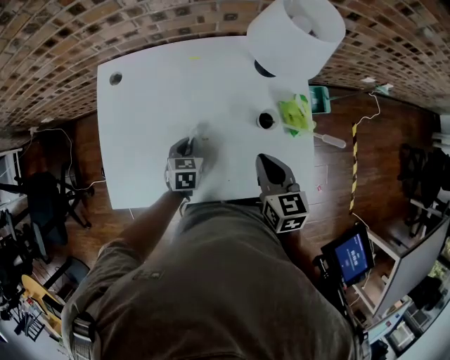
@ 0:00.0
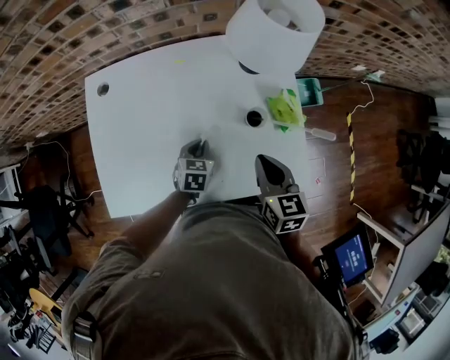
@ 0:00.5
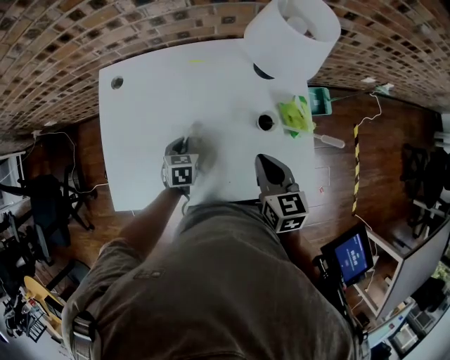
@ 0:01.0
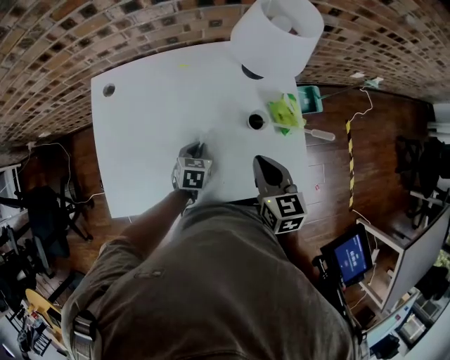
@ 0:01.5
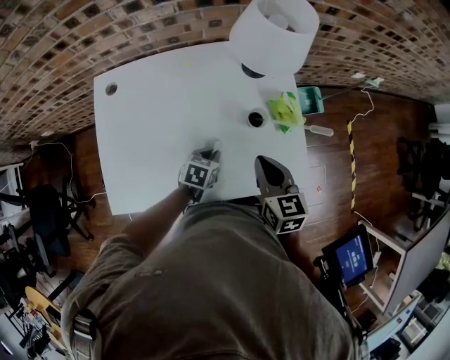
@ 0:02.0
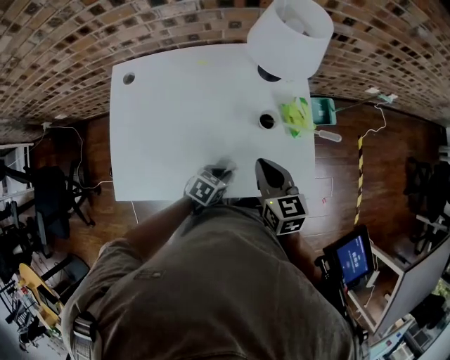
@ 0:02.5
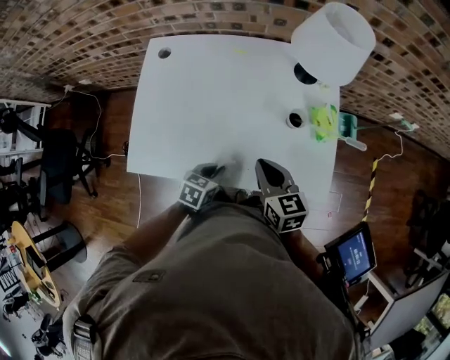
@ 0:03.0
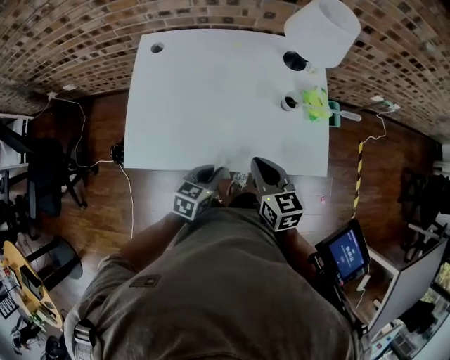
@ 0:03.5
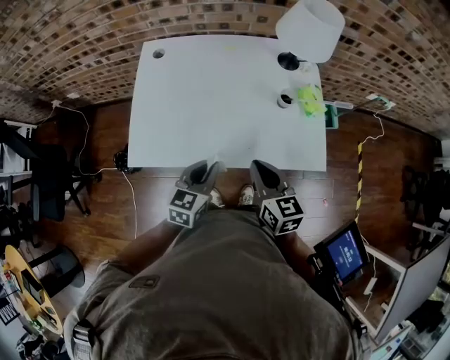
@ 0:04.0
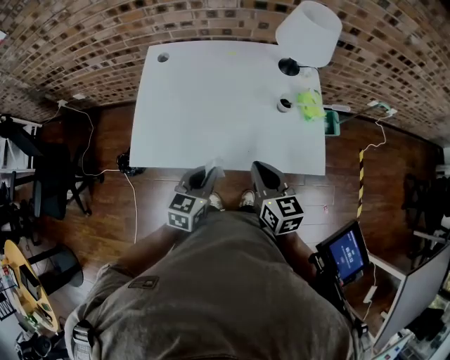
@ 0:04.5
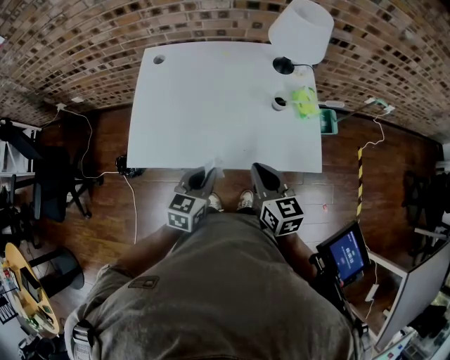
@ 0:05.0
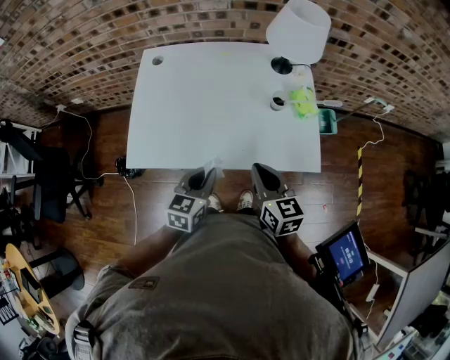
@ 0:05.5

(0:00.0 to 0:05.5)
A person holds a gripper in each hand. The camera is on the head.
0:00.0 - 0:02.0: The left gripper moves left and right over approximately 15 cm, changing direction 2 times, and turns by approximately 20 degrees.
0:02.0 - 0:03.5: The left gripper heads backward and upward, covering some 20 cm, and turns by roughly 20 degrees. The right gripper shifts approximately 15 cm backward and to the left.
0:03.5 - 0:05.5: The left gripper is displaced upward by some 5 cm; the right gripper ends up some 5 cm from where it was.

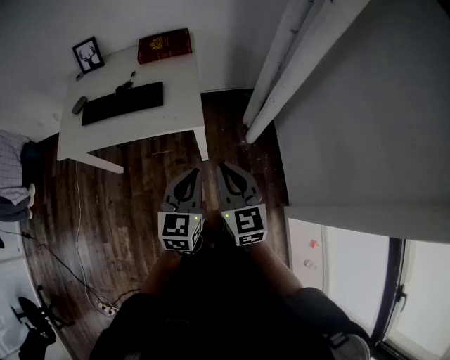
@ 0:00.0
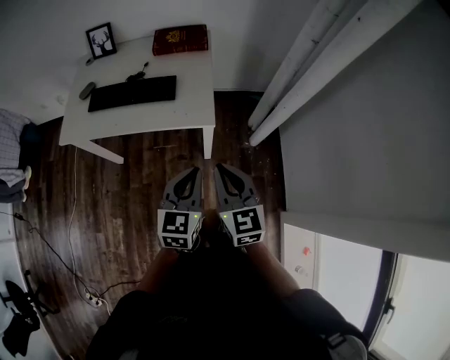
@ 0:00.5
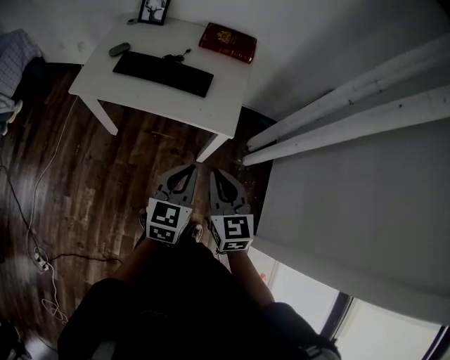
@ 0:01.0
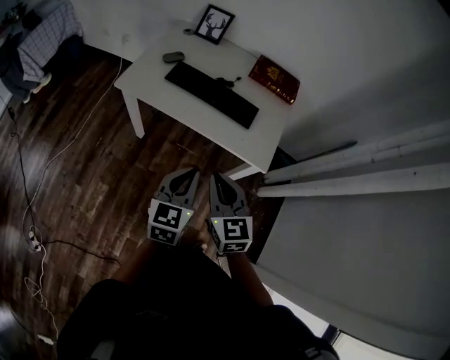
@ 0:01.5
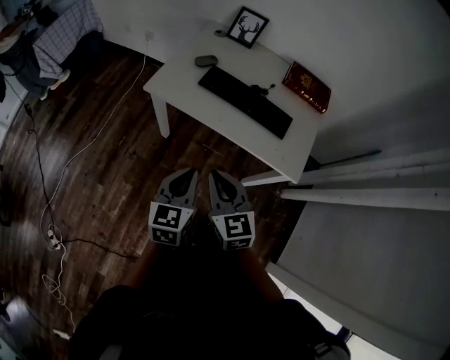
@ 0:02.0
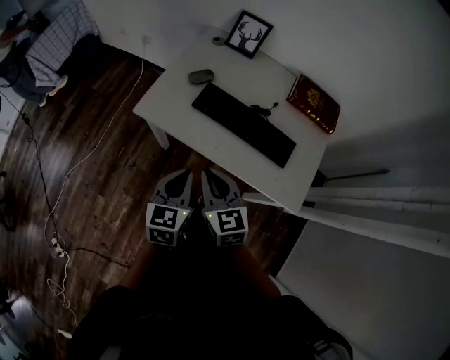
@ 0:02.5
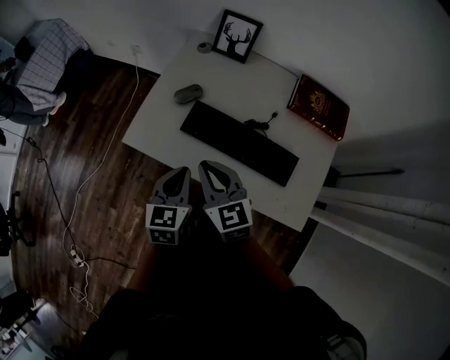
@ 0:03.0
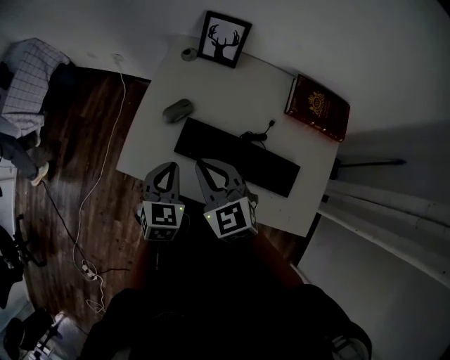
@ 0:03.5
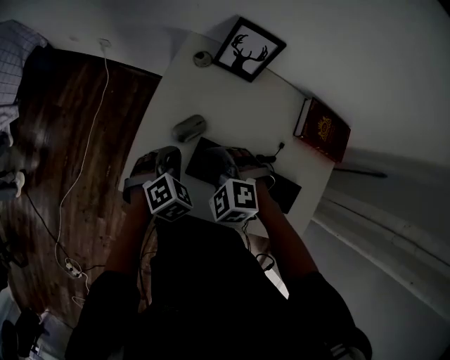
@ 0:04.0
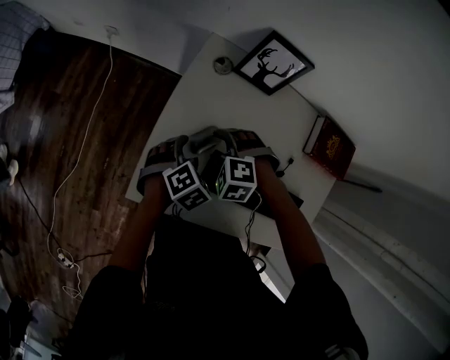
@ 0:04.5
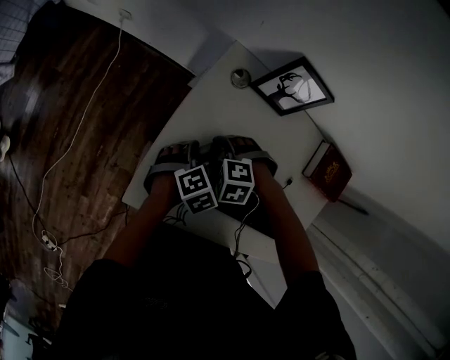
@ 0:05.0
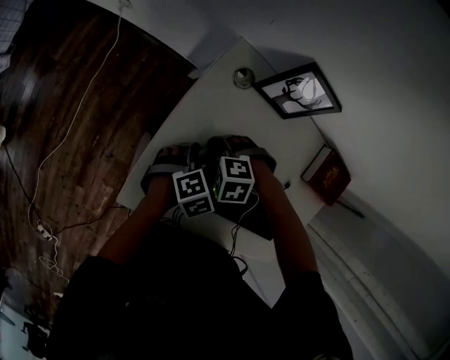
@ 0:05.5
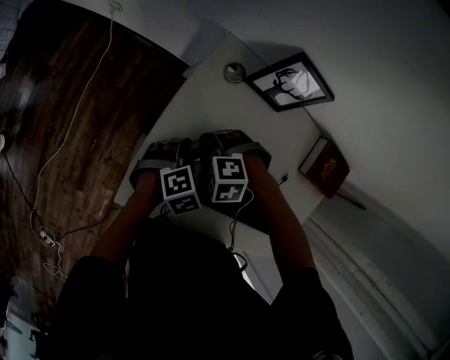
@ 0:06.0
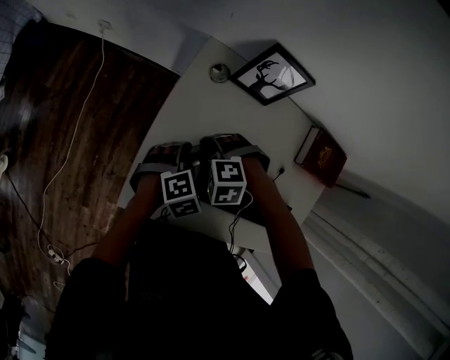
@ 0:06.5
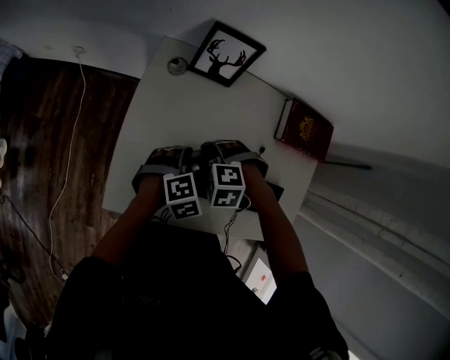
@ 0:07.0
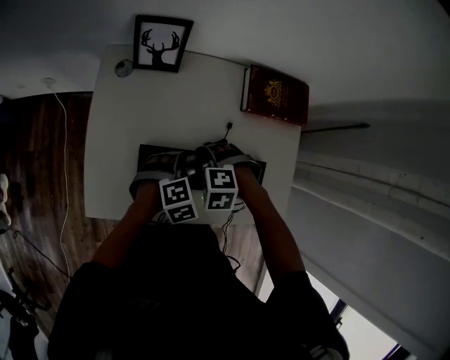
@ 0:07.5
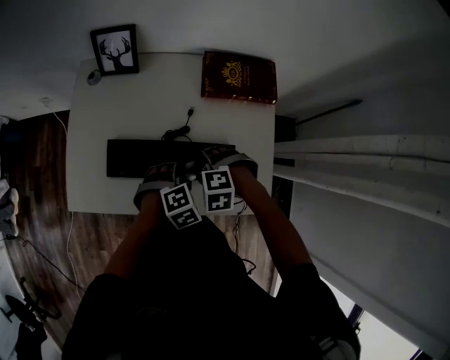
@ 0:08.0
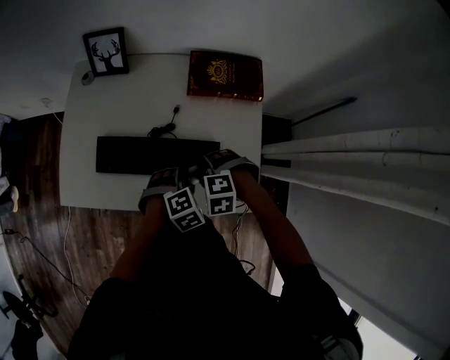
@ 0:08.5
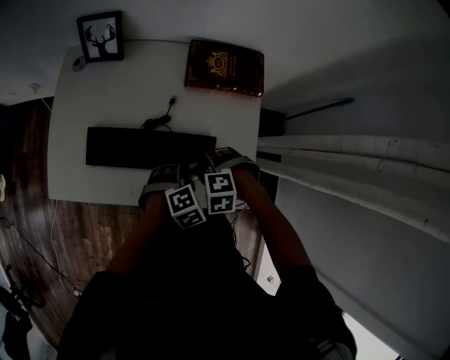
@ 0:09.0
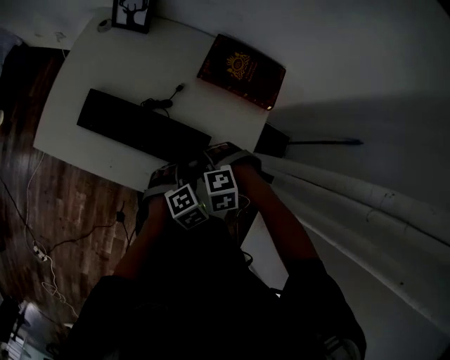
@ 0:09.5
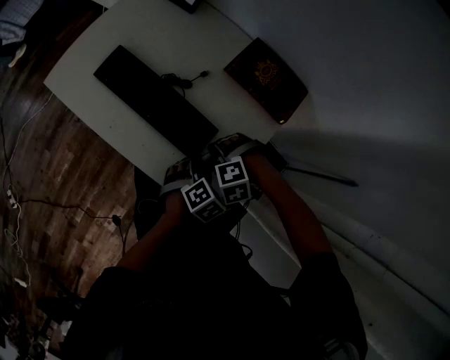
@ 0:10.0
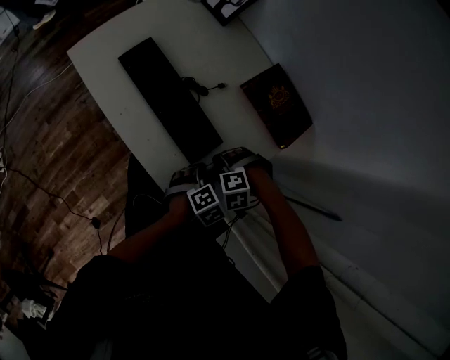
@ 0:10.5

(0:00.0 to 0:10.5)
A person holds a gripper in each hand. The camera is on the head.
0:00.0 - 0:02.0: The left gripper shifts by some 40 cm, and turns by roughly 30 degrees; the right gripper ends up some 40 cm from where it was, and turns by some 30 degrees.
0:02.0 - 0:04.0: Both grippers are carried forward, about 50 cm. The right gripper tilts its fingers about 40 degrees downward, while the left gripper points its fingers about 40 degrees further downward.
0:04.0 - 0:06.5: The right gripper goes approximately 10 cm downward, swivels about 30 degrees, and opens; the left gripper moves downward, approximately 5 cm, turns by roughly 20 degrees, and opens up.
0:06.5 - 0:08.5: Both grippers are carried about 40 cm.
0:08.5 - 0:10.5: The right gripper moves about 15 cm, and rotates around the line of its fingers by roughly 50 degrees, counterclockwise from behind. The left gripper shifts by roughly 15 cm, and twists some 50 degrees counterclockwise, seen from behind.

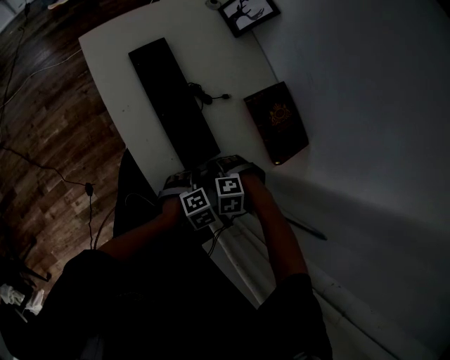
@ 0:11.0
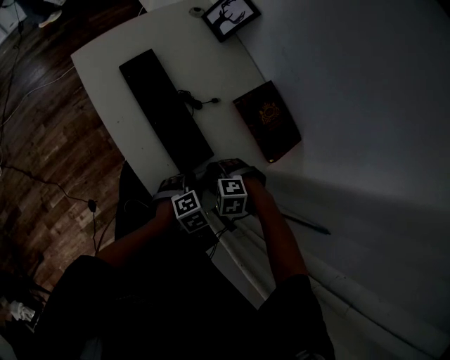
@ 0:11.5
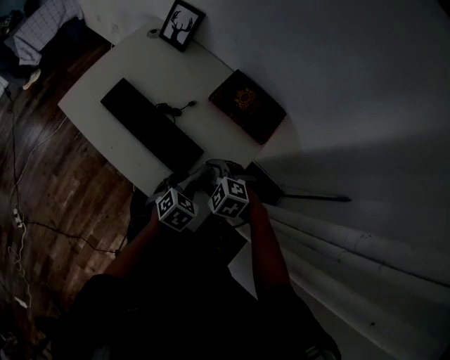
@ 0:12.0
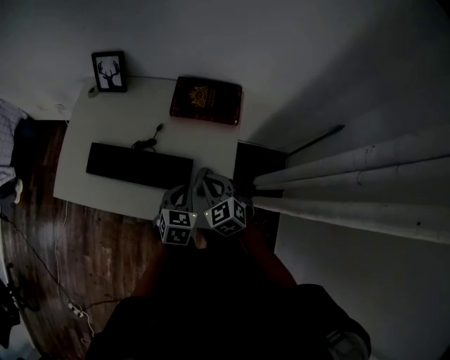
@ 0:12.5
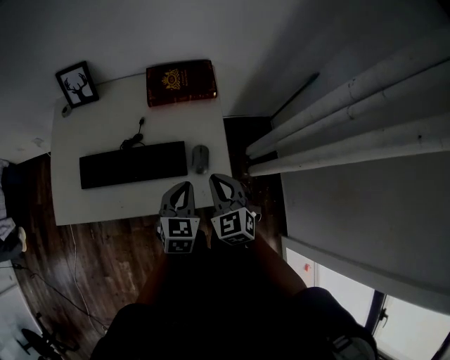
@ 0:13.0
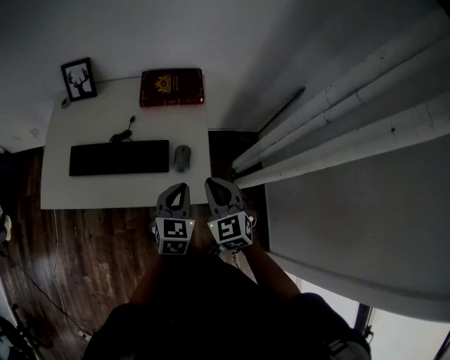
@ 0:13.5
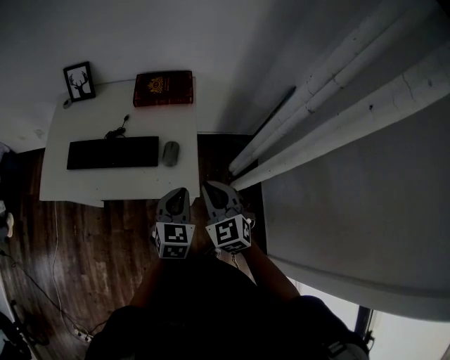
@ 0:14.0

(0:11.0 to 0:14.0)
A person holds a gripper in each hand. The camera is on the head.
0:11.0 - 0:12.5: The grippers both shift upward by some 15 cm. The left gripper turns by approximately 20 degrees, and closes up. Meanwhile the right gripper rolls clockwise, seen from behind, by roughly 90 degrees, and closes its fingers.
0:12.5 - 0:14.0: Both grippers move backward, to the right and upward, some 20 cm. The right gripper rotates some 20 degrees.

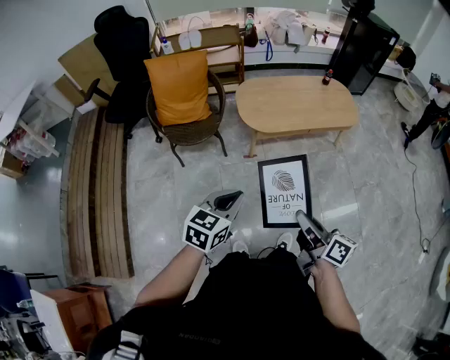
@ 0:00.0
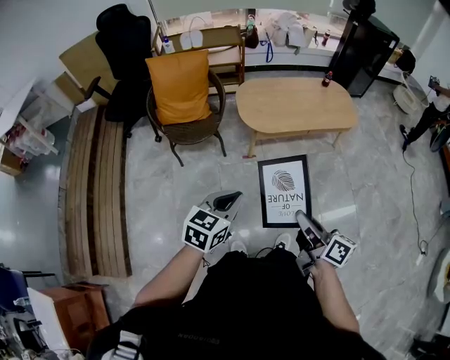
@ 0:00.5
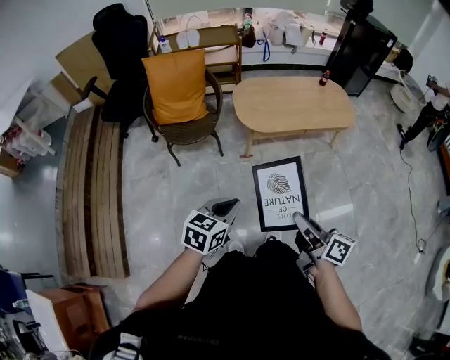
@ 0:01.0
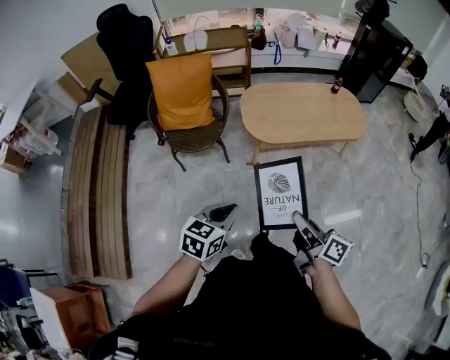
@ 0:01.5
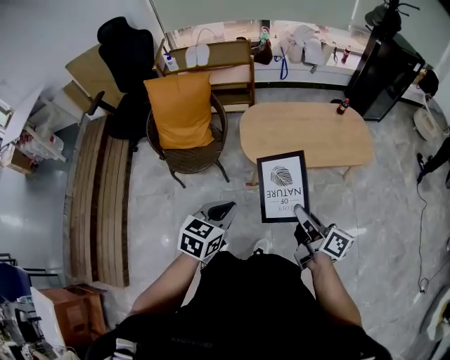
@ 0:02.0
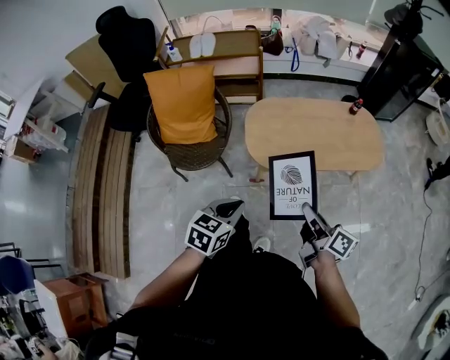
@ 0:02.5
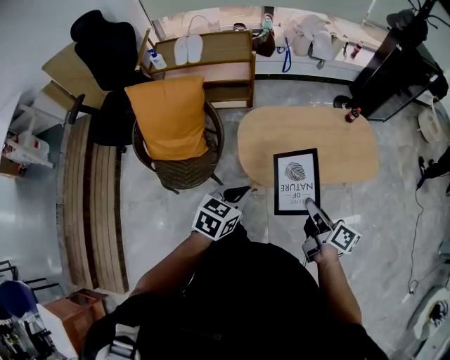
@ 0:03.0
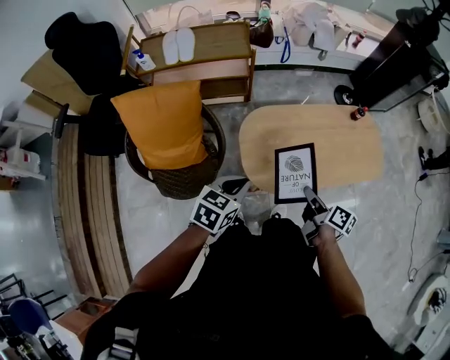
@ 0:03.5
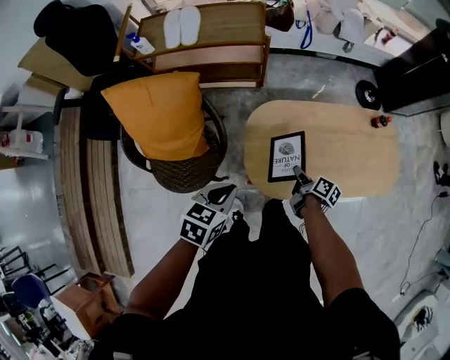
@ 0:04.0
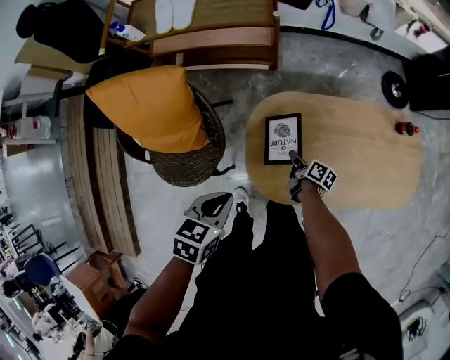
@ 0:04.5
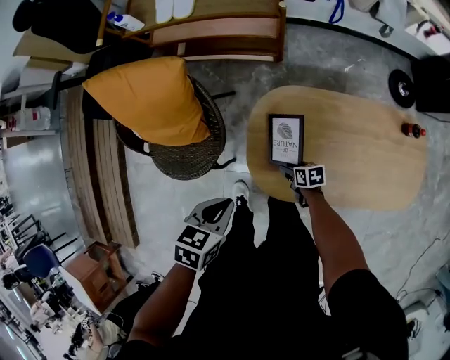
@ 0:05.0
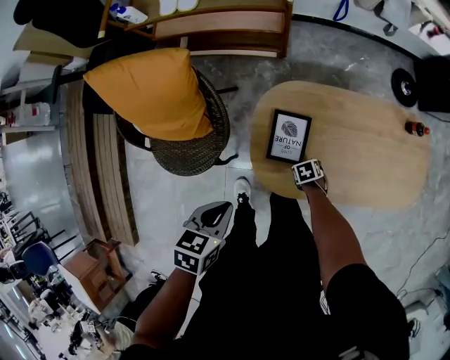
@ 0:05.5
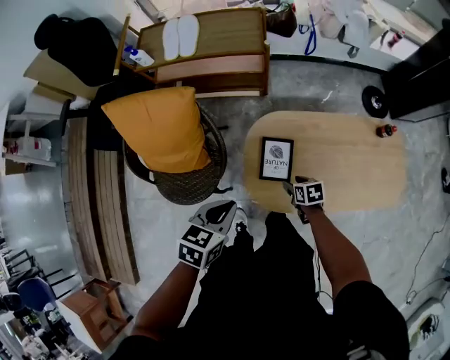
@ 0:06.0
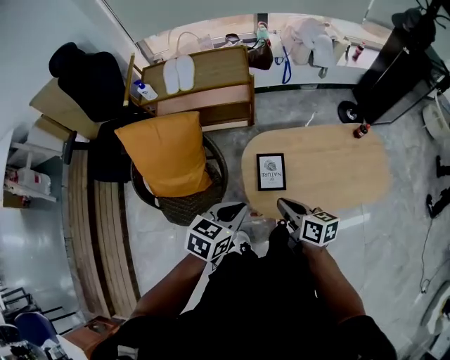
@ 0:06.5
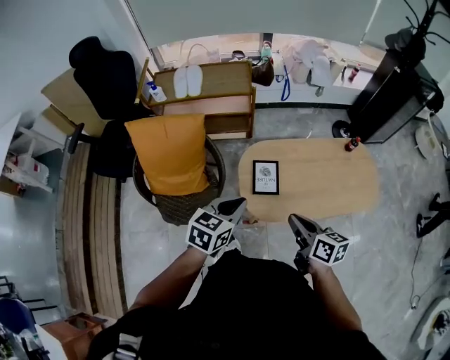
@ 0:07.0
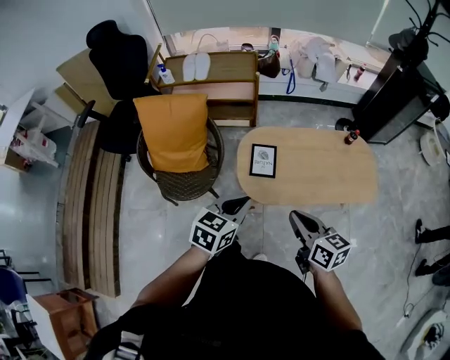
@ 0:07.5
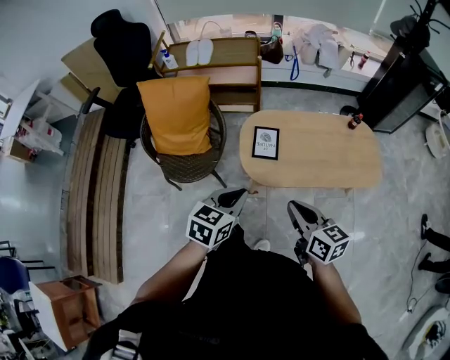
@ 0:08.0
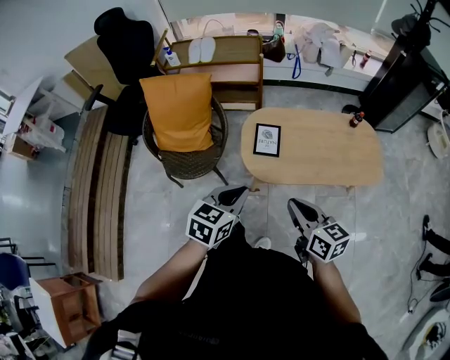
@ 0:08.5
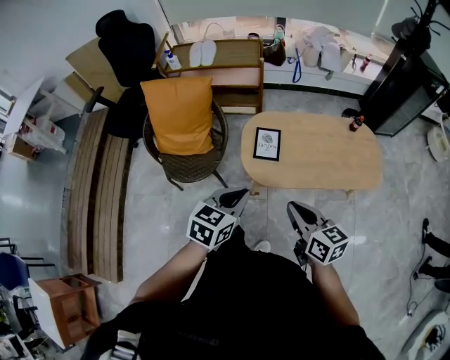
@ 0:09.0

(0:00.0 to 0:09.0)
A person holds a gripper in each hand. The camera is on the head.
0:00.0 - 0:02.0: Both grippers move forward, some 20 cm.
0:02.0 - 0:04.5: The pair of grippers is taken forward, roughly 50 cm. The left gripper swivels roughly 30 degrees; the right gripper shifts some 40 cm downward, and angles its fingers downward, by approximately 30 degrees.
0:04.5 - 0:07.0: The right gripper shifts roughly 40 cm upward, turns by some 40 degrees, and opens, then closes once more. The left gripper shifts some 15 cm upward, and turns by about 30 degrees.
0:07.0 - 0:09.0: Both grippers travel together backward, roughly 15 cm.
